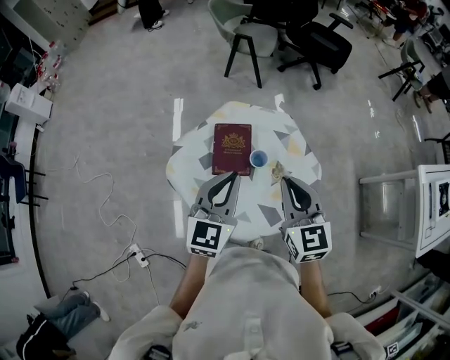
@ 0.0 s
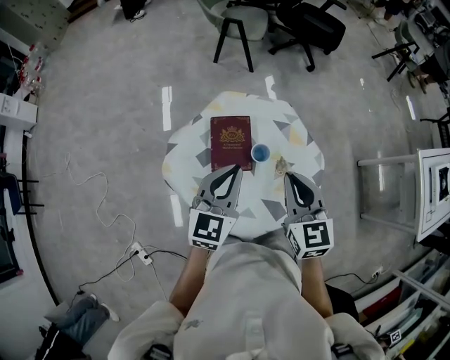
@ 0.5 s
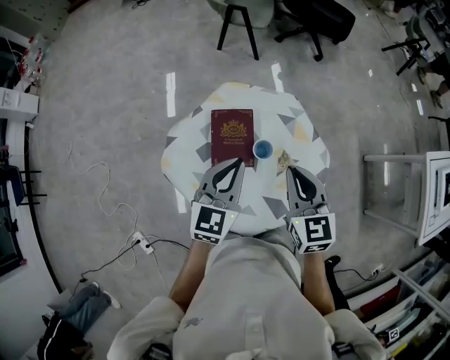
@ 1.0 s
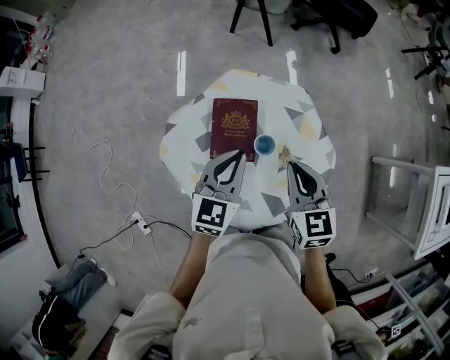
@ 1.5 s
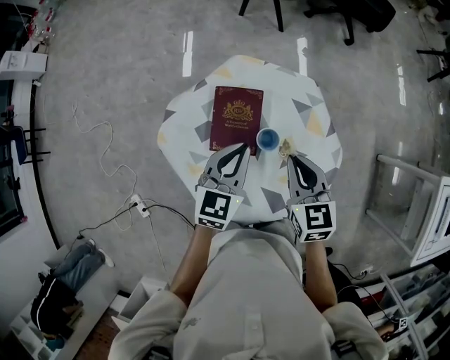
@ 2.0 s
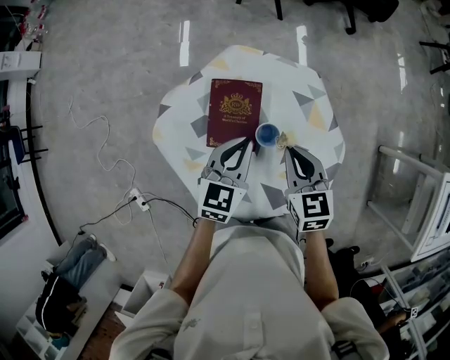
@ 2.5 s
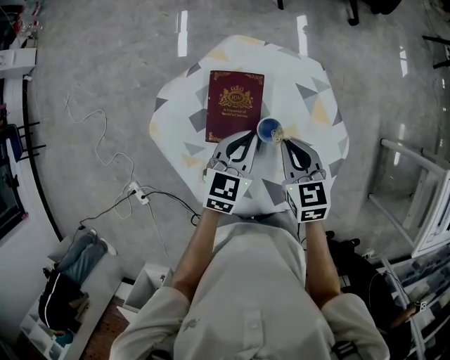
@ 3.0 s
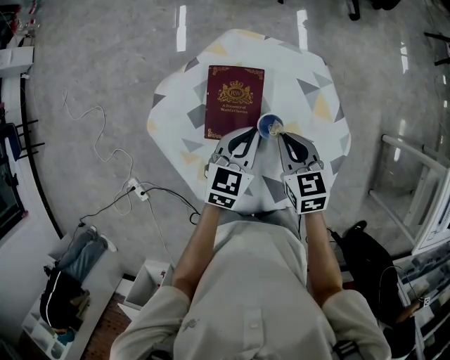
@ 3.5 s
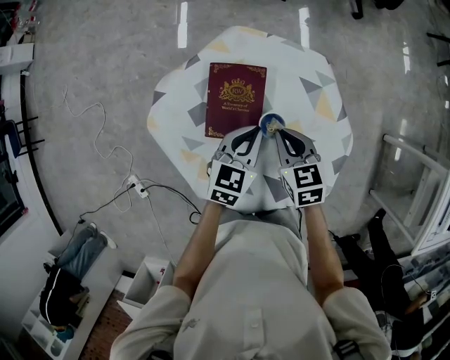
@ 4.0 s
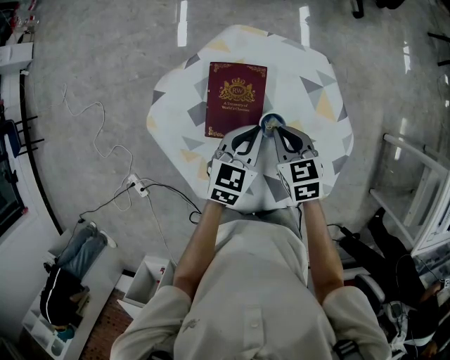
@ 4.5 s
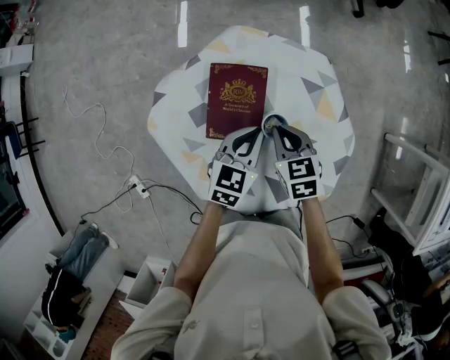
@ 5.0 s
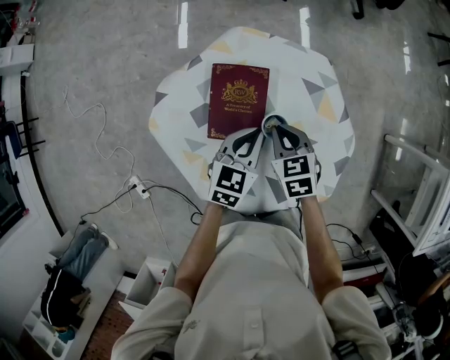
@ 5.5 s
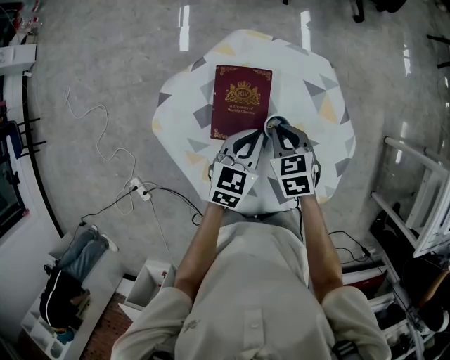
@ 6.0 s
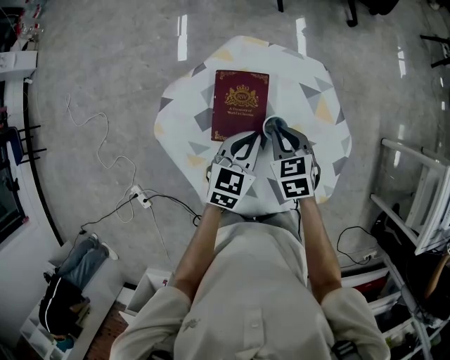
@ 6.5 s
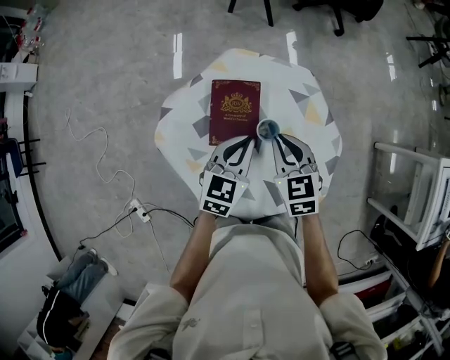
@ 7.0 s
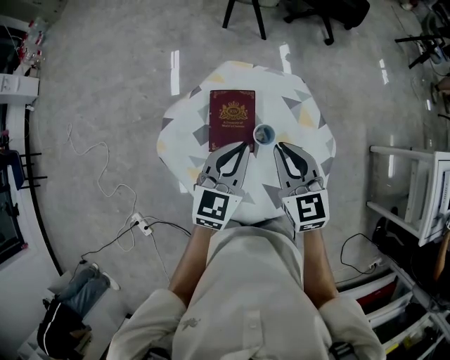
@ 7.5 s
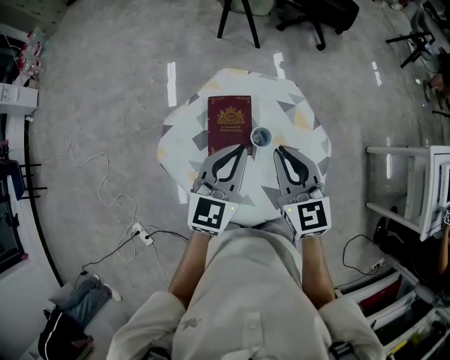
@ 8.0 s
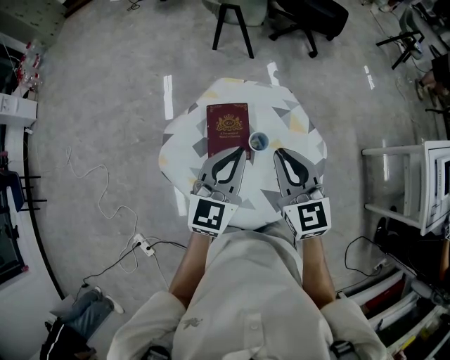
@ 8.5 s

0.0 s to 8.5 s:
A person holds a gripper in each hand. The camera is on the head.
0.0 to 2.0 s: The grippers both shift downward and forward by approximately 15 cm.
2.0 to 4.0 s: The two grippers go approximately 10 cm downward.
4.0 to 6.5 s: The grippers stay close to where they were, moving slightly.
6.5 to 8.5 s: Both grippers move upward, approximately 20 cm. The left gripper turns by about 20 degrees. The right gripper angles its fingers upward, by approximately 40 degrees.

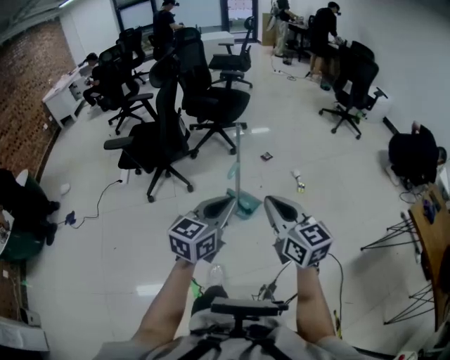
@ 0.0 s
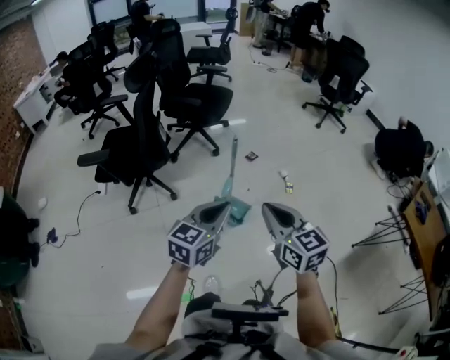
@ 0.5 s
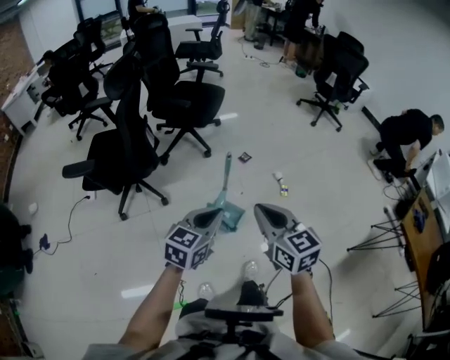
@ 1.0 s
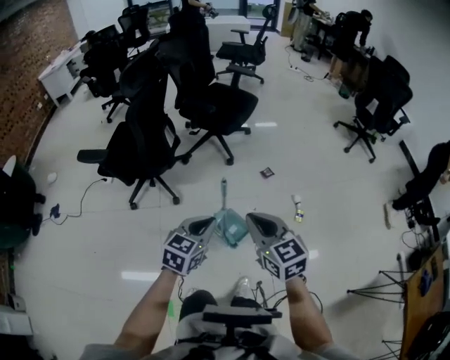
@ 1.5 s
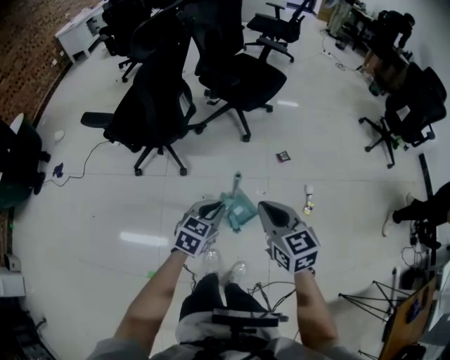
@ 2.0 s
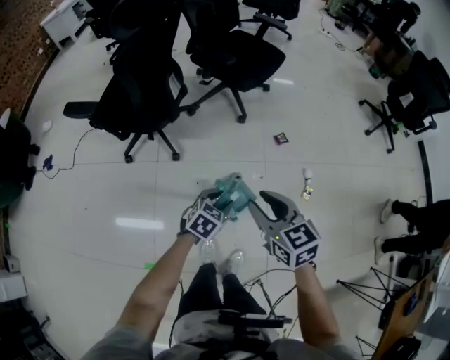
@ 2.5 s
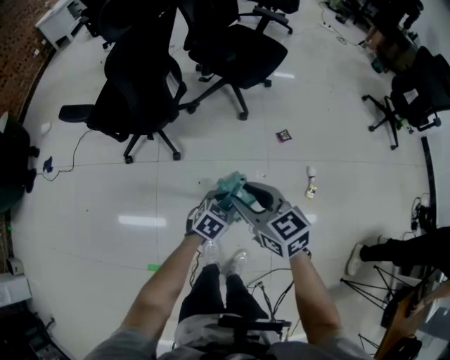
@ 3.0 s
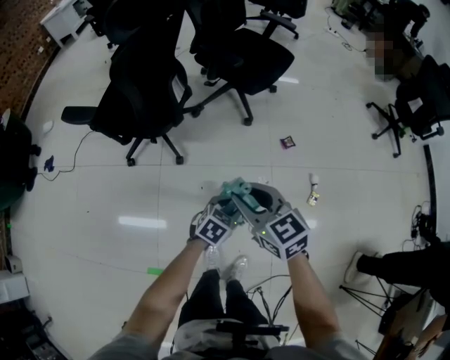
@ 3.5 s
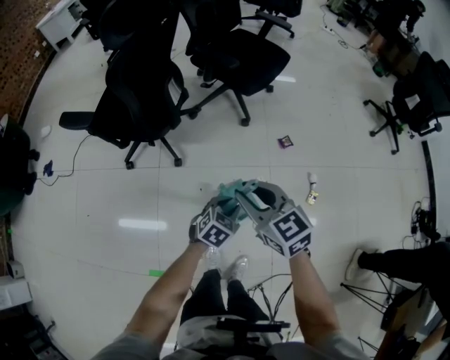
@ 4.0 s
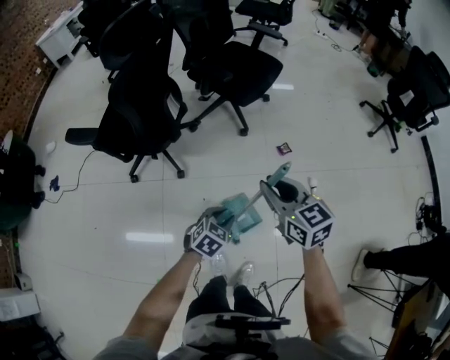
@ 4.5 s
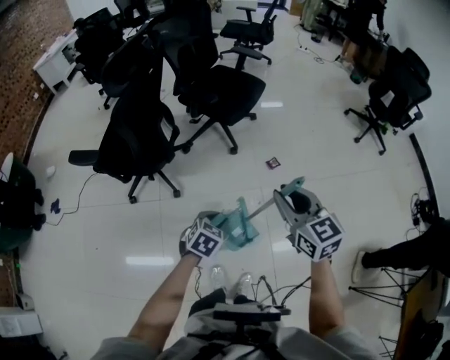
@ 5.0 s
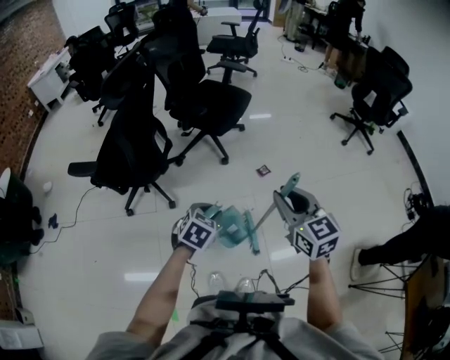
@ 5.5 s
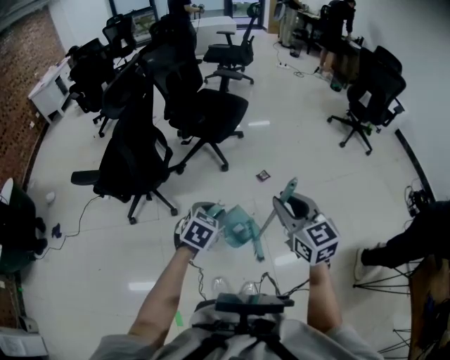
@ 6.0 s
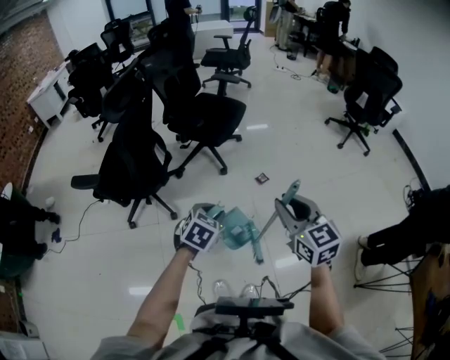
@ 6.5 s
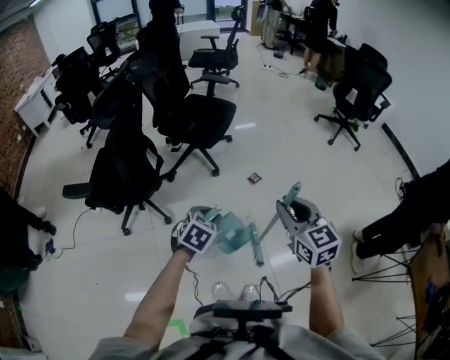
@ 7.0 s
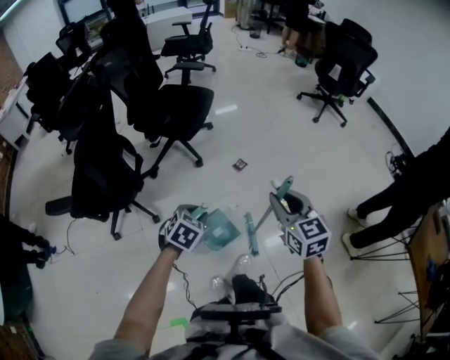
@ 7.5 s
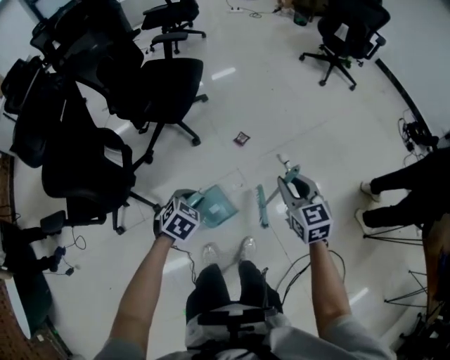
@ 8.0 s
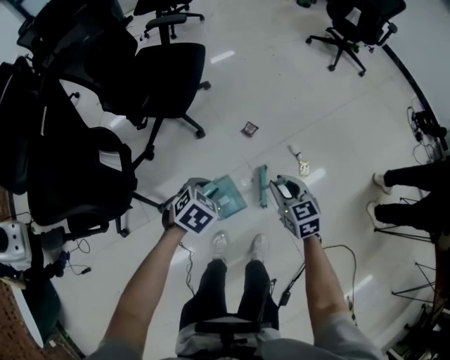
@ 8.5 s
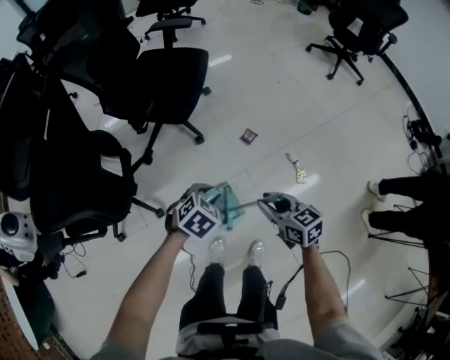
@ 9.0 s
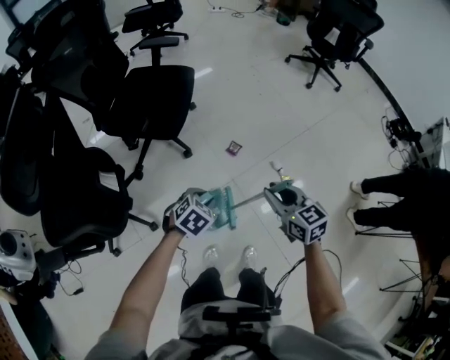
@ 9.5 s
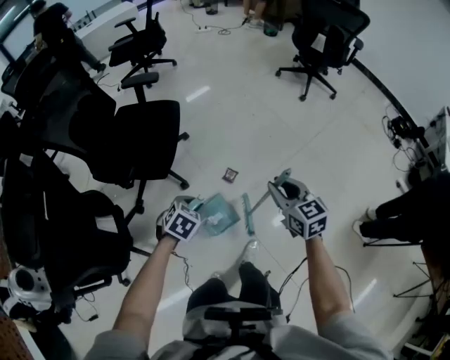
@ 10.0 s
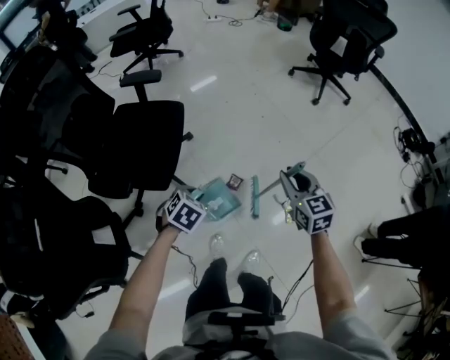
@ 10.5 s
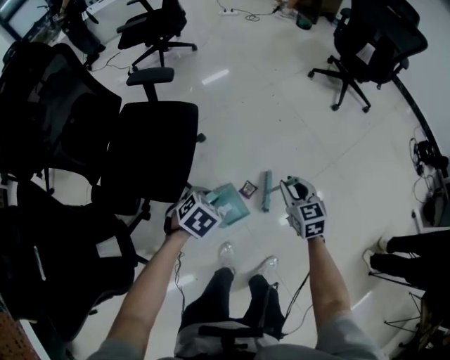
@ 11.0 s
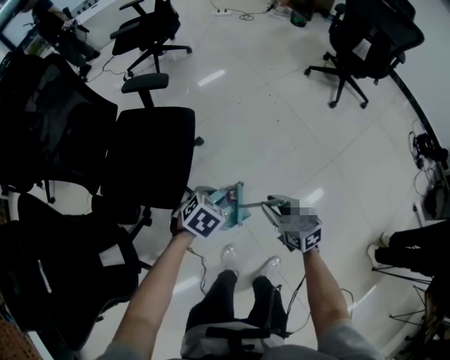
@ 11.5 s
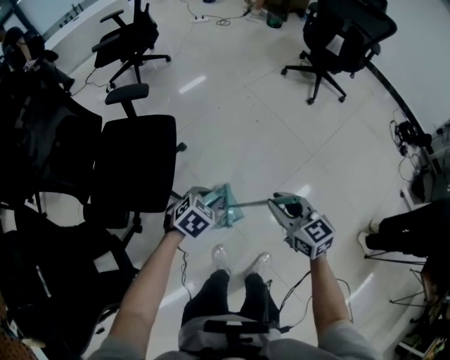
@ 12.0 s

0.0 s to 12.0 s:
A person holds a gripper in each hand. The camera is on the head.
0.0 to 2.0 s: The right gripper heads forward, covering roughly 35 cm, and changes its angle by roughly 20 degrees; the left gripper travels forward and downward by about 40 cm, and rotates some 30 degrees.
2.0 to 4.0 s: The left gripper goes roughly 15 cm downward and forward, and opens its fingers; the right gripper moves forward and to the left, some 15 cm, and opens.
4.0 to 6.0 s: The left gripper shifts about 20 cm upward; the right gripper is displaced to the right, upward and backward by approximately 25 cm, and swivels approximately 30 degrees.
6.0 to 8.0 s: The left gripper moves forward and downward, some 20 cm, and swivels about 20 degrees; the right gripper is displaced downward, forward and to the right by roughly 25 cm, and turns by about 20 degrees.
8.0 to 10.0 s: Both grippers travel together forward, roughly 20 cm.
10.0 to 12.0 s: Both grippers move forward, approximately 20 cm.

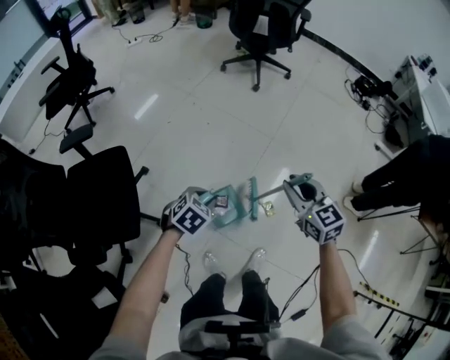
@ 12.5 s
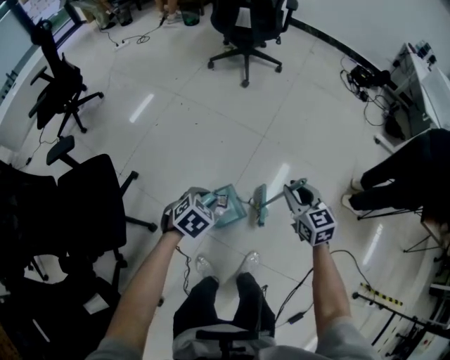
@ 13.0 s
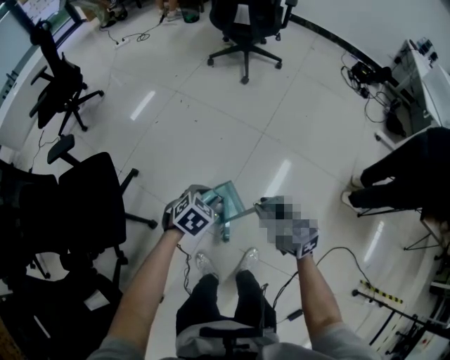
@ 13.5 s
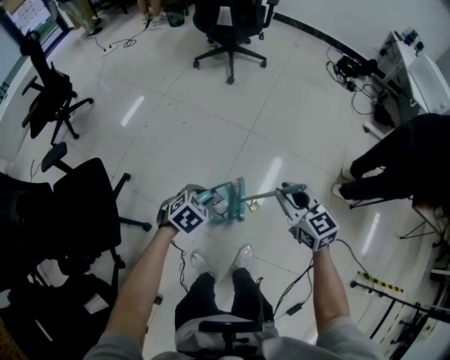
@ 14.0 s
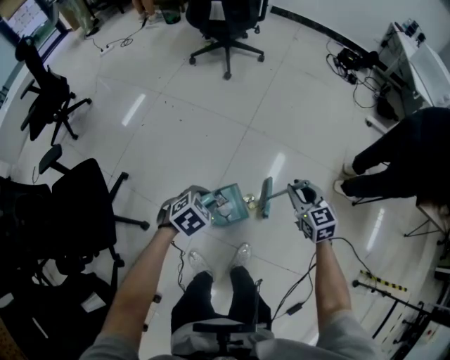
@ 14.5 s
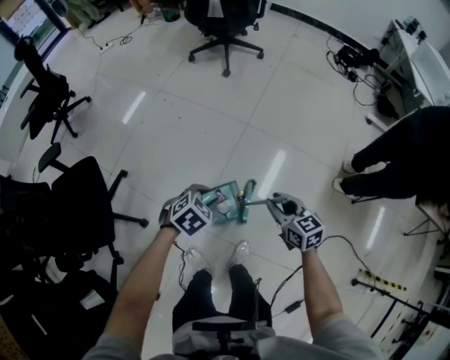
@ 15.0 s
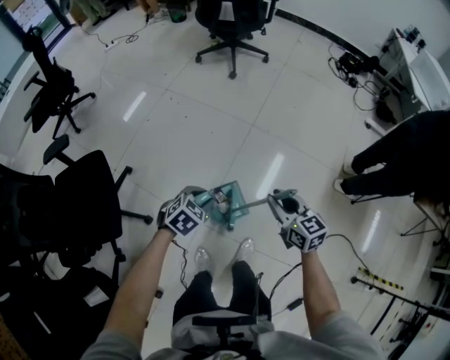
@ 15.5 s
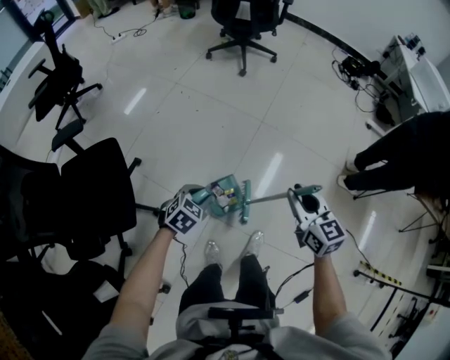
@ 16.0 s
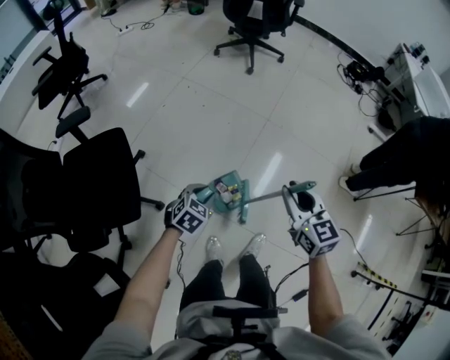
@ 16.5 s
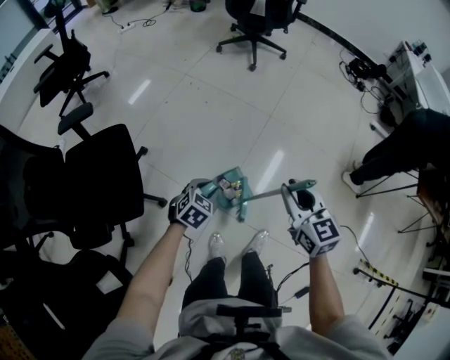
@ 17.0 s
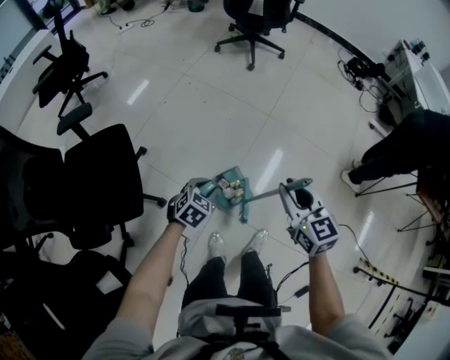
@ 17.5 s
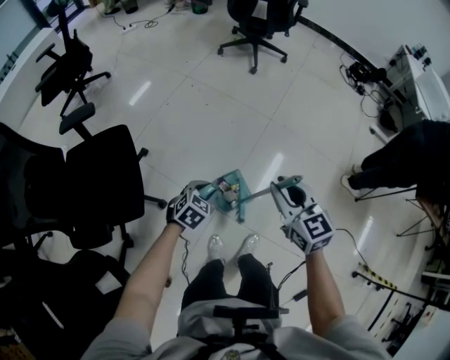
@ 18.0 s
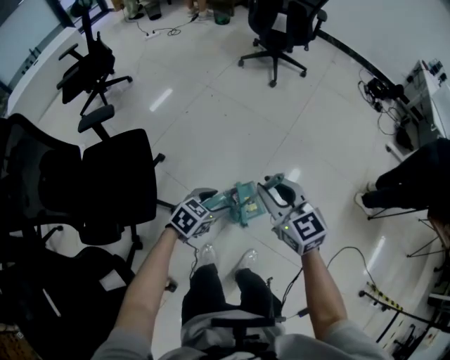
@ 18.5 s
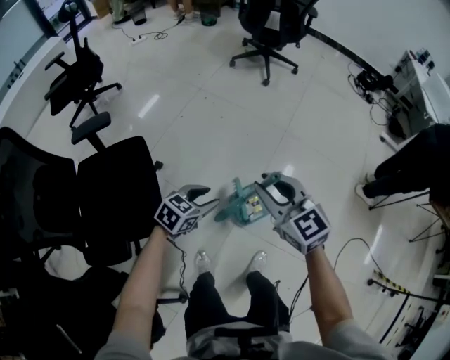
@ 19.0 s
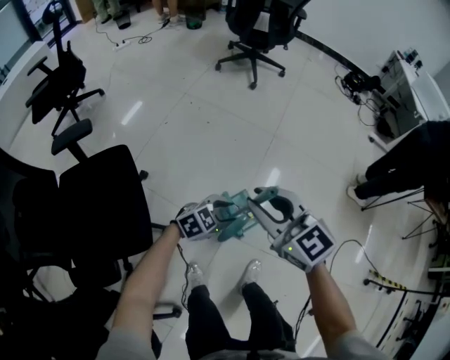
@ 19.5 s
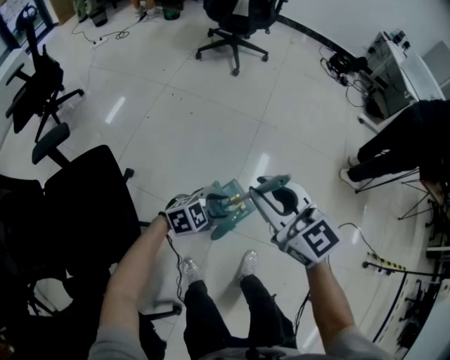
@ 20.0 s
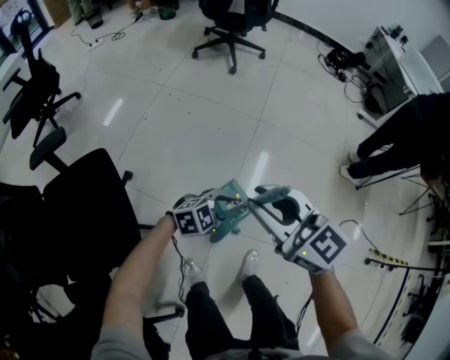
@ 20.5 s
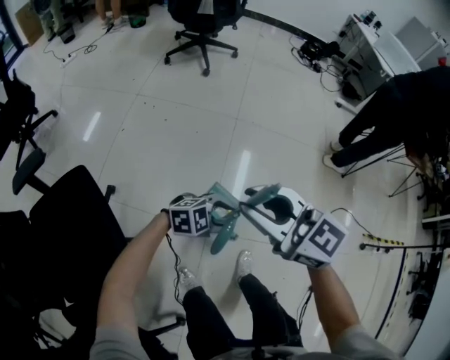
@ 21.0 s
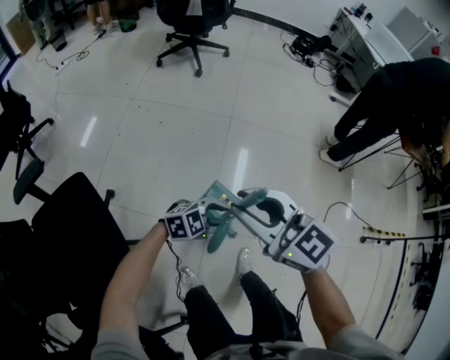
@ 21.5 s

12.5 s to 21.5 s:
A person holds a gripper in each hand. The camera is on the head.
12.5 to 14.5 s: The right gripper goes left and right, some 20 cm each way, reversing 2 times. Meanwhile the left gripper shifts roughly 20 cm to the right.
14.5 to 17.0 s: The left gripper shifts roughly 20 cm to the left and backward, while the right gripper heads to the left, backward and upward, covering approximately 30 cm.
17.0 to 19.5 s: The left gripper goes to the left and returns, about 10 cm each way, and turns by about 30 degrees. Meanwhile the right gripper goes roughly 20 cm to the left.
19.5 to 21.5 s: The left gripper moves roughly 10 cm, and turns by some 30 degrees.
